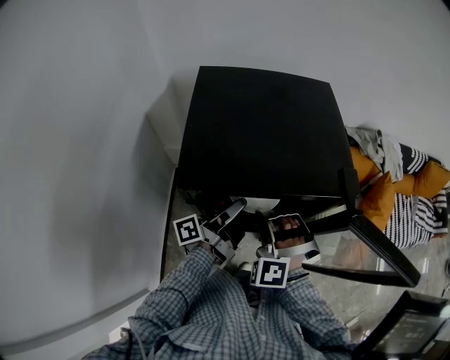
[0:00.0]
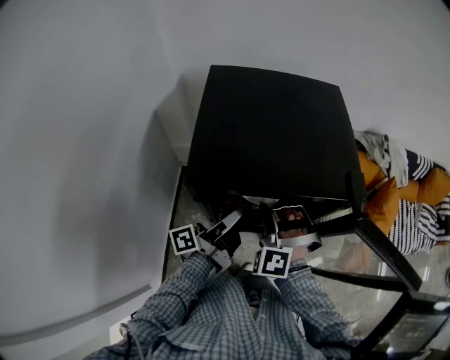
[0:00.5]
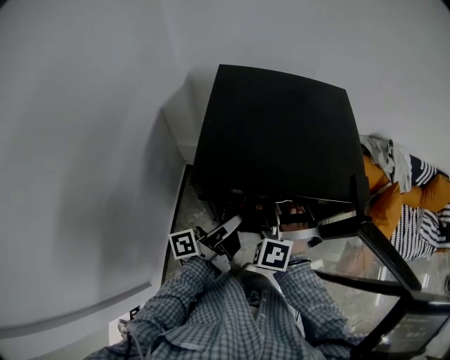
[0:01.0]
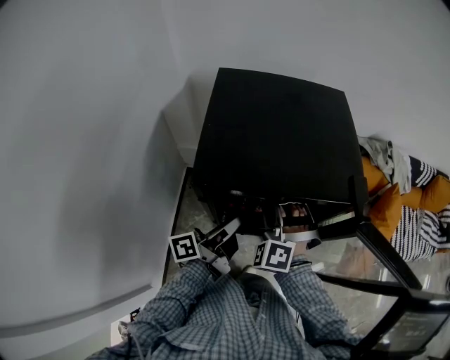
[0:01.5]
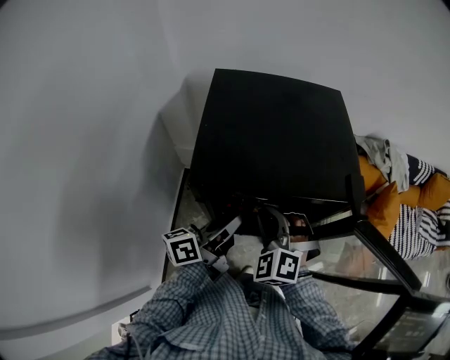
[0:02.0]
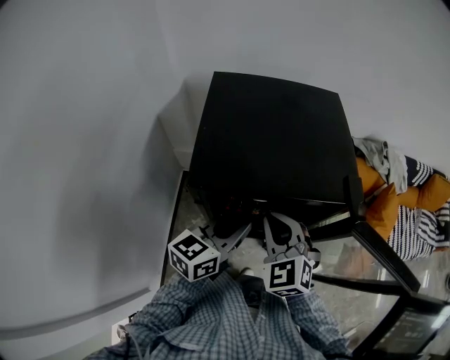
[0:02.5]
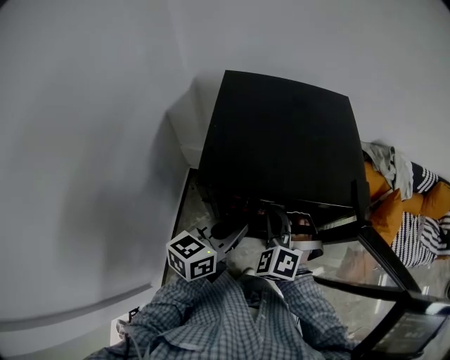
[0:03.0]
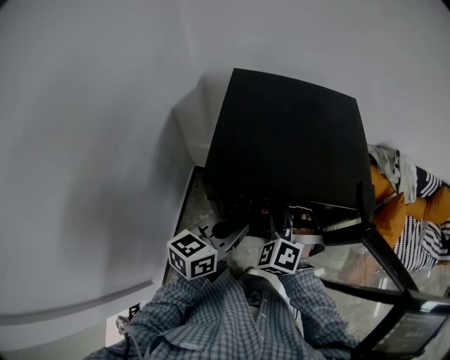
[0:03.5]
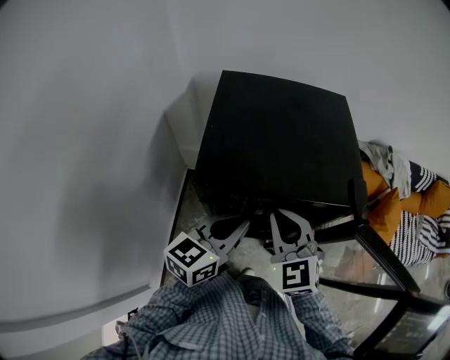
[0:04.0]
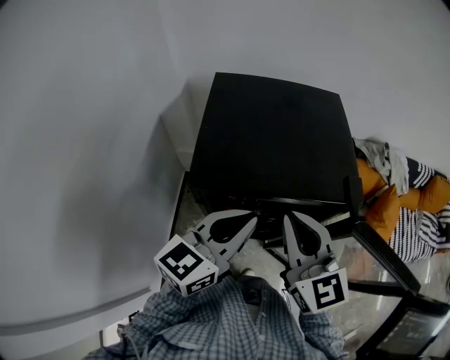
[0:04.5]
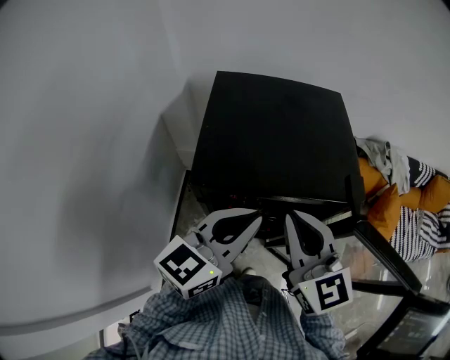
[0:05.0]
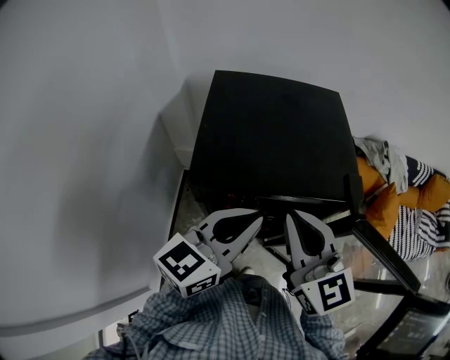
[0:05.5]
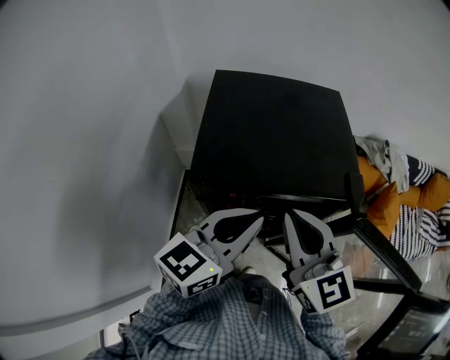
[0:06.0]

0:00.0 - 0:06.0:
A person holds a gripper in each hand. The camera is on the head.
0:00.0 - 0:02.0: The right gripper changes its angle by some 20 degrees.
0:02.0 - 0:04.0: The right gripper is displaced upward by approximately 5 cm, and changes its angle by approximately 30 degrees.
0:04.0 - 0:06.0: The right gripper moves upward, some 10 cm, and rotates approximately 30 degrees.

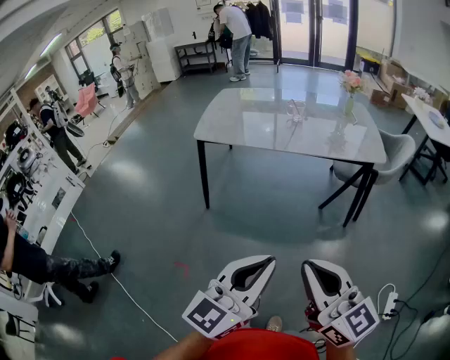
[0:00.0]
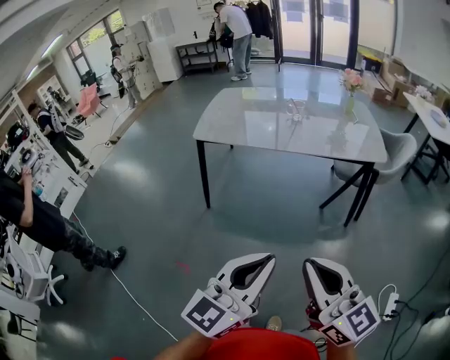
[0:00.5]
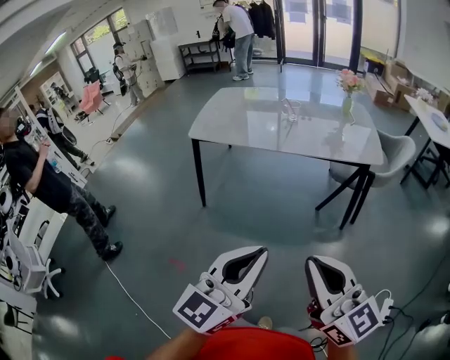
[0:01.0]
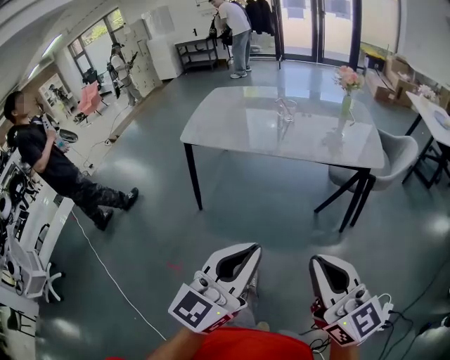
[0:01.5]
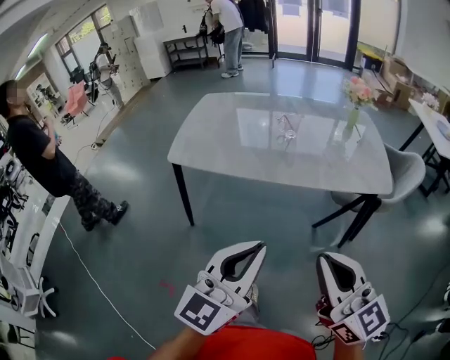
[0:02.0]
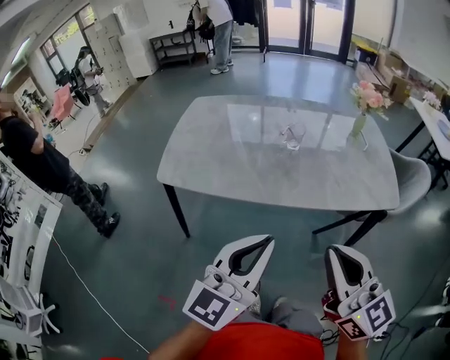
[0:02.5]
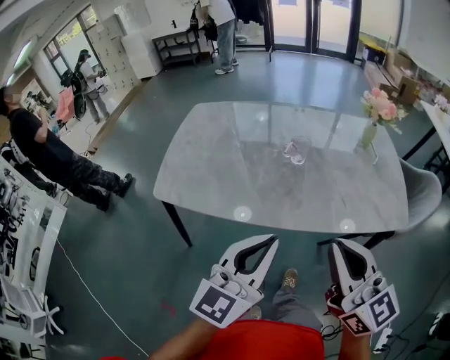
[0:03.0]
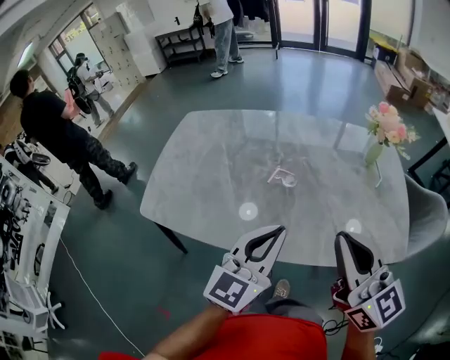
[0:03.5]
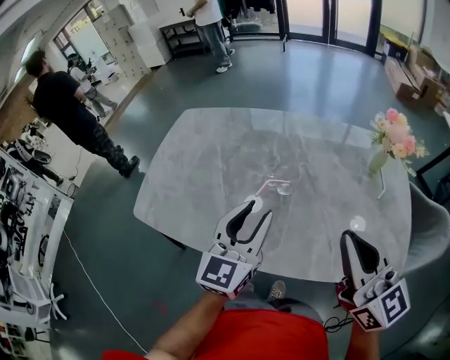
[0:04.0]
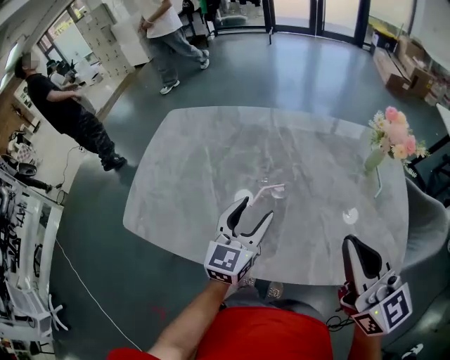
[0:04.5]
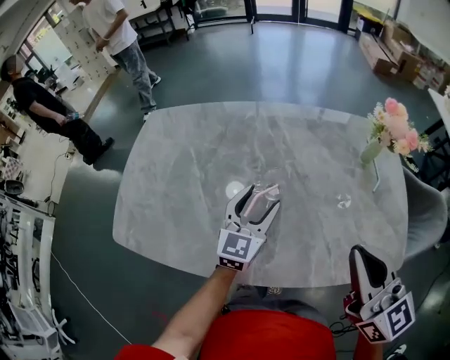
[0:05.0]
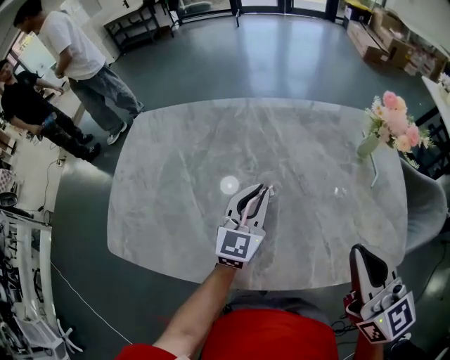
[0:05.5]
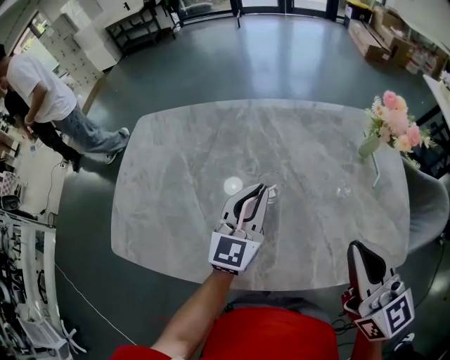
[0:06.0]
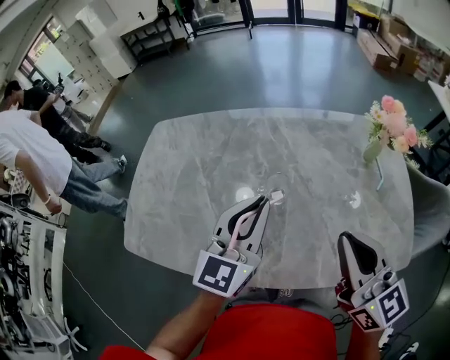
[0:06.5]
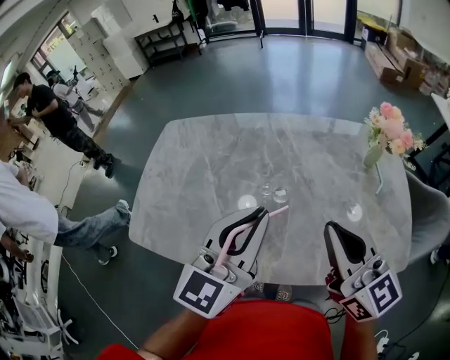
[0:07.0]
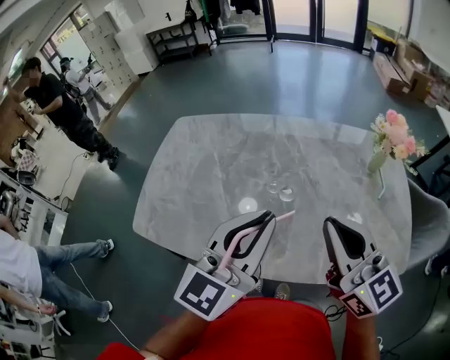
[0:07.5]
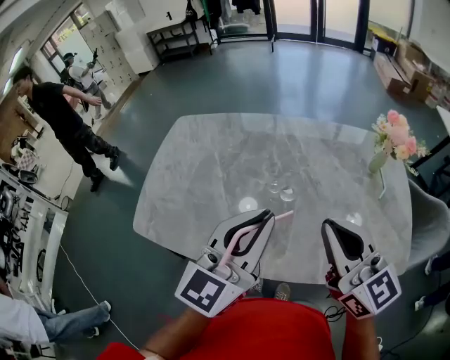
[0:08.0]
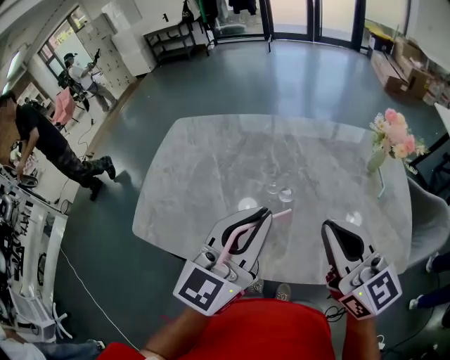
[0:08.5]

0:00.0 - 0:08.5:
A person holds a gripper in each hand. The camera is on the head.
0:00.0 - 0:02.0: Both grippers move forward, approximately 25 cm.
0:02.0 - 0:04.0: The two grippers travel together, forward, some 50 cm. The left gripper opens up.
0:04.0 - 0:06.5: Both grippers travel together forward, some 5 cm. The left gripper closes its fingers.
0:06.5 - 0:08.5: The left gripper moves backward and upward, some 10 cm. Meanwhile the right gripper heads to the left, covering about 5 cm.

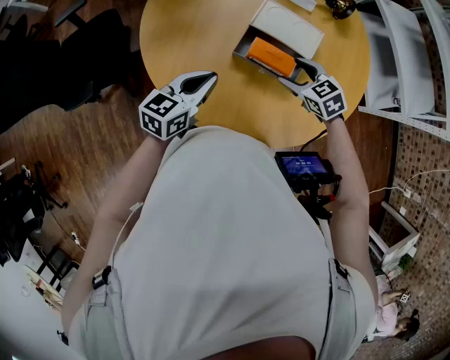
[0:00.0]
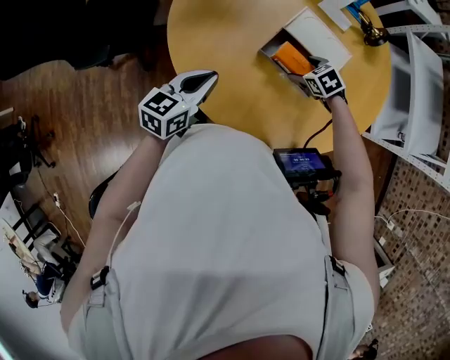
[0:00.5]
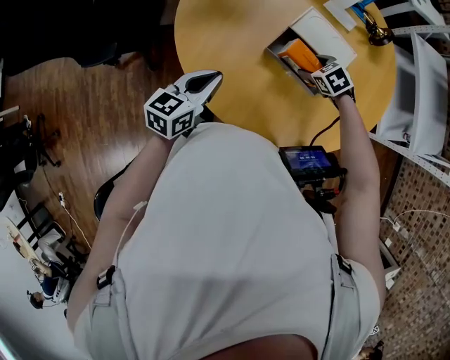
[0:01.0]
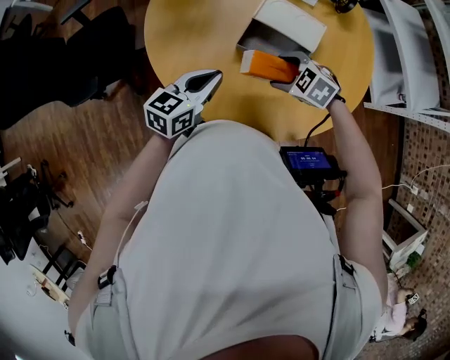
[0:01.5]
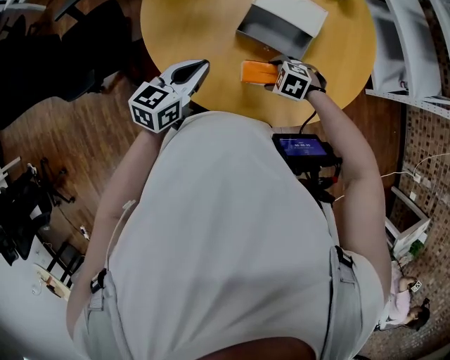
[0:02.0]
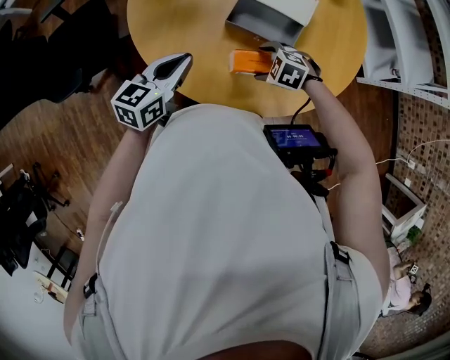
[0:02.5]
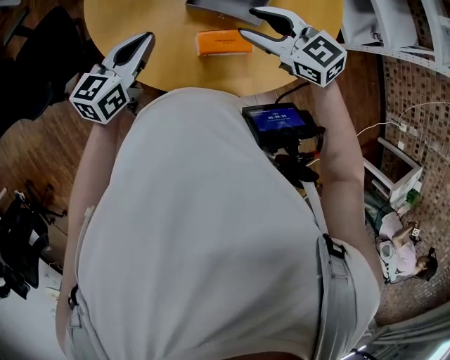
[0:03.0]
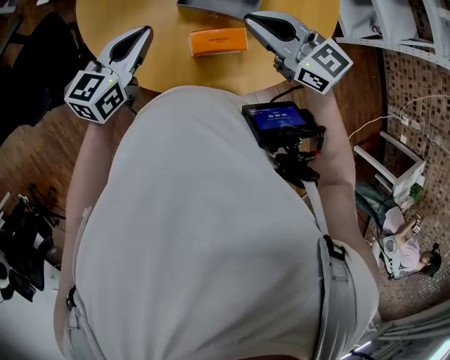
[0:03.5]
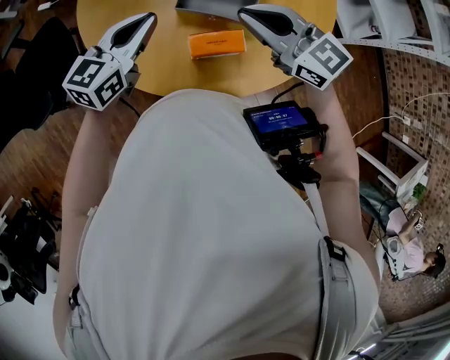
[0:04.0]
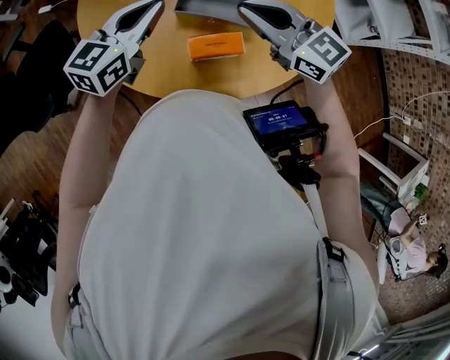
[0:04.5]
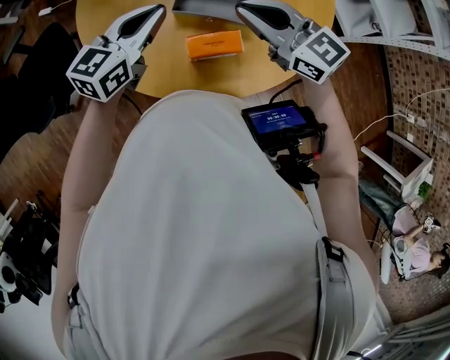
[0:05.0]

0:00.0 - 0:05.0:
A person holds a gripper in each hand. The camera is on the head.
0:00.0 - 0:02.5: The right gripper swings up and down, about 10 cm each way, with 2 reversals, and changes its angle by some 40 degrees.
0:02.5 - 0:05.0: The left gripper moves upward, roughly 10 cm. The right gripper goes roughly 25 cm upward, tilts its fingers roughly 60 degrees upward, and closes.

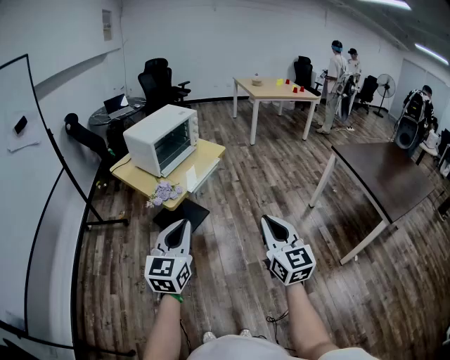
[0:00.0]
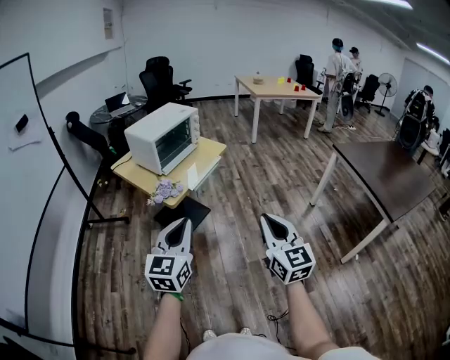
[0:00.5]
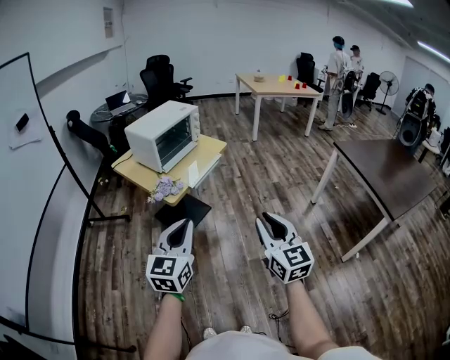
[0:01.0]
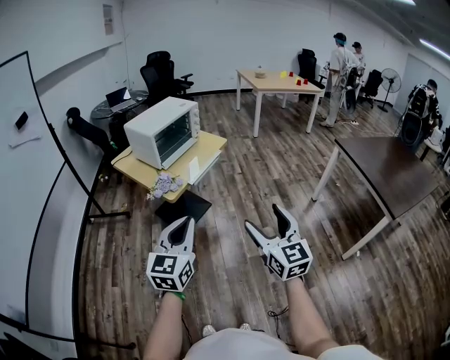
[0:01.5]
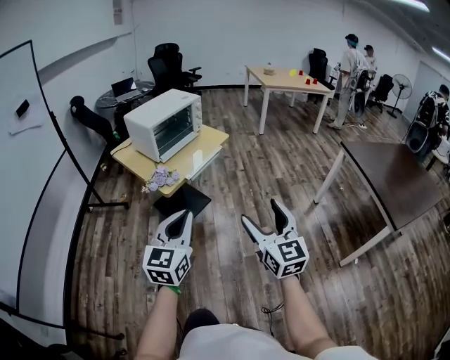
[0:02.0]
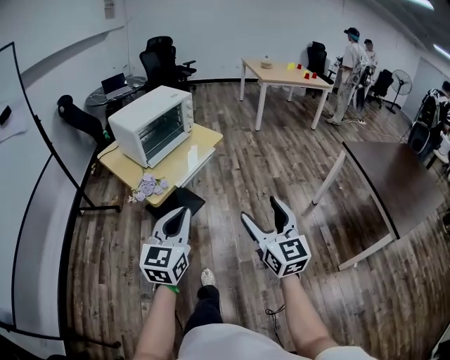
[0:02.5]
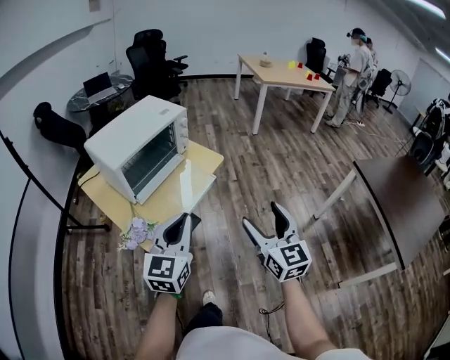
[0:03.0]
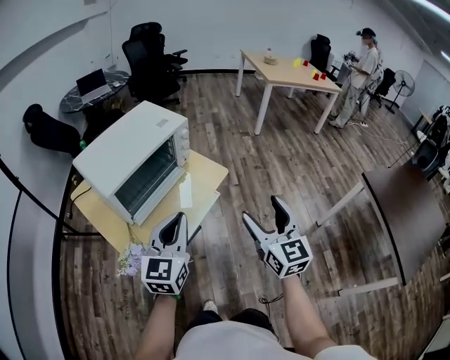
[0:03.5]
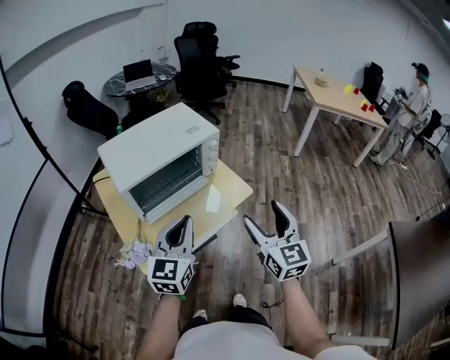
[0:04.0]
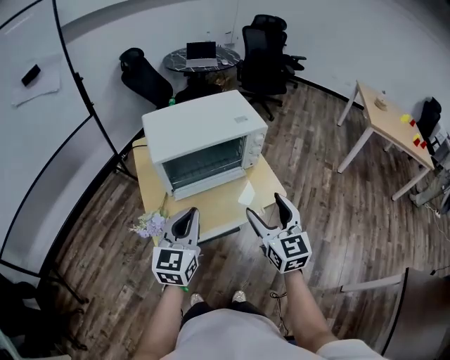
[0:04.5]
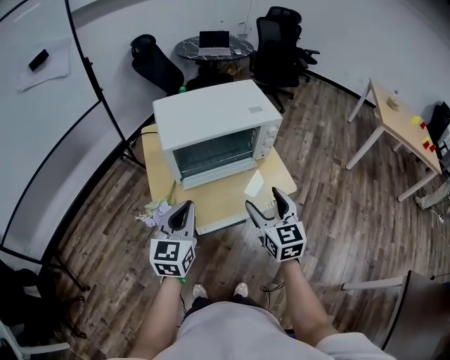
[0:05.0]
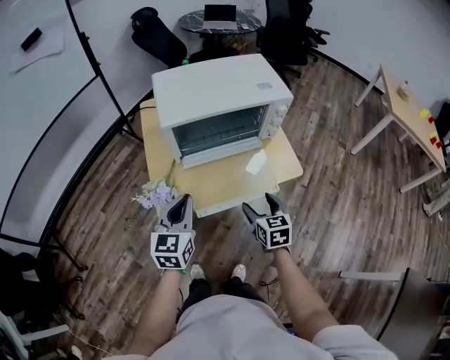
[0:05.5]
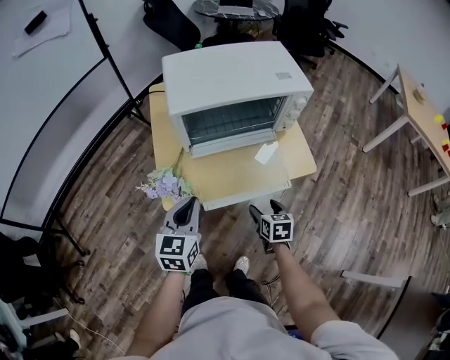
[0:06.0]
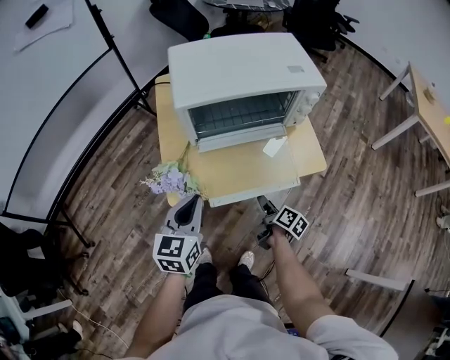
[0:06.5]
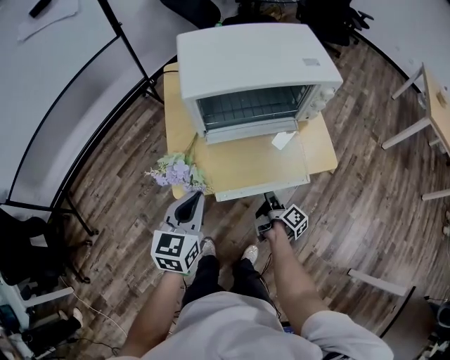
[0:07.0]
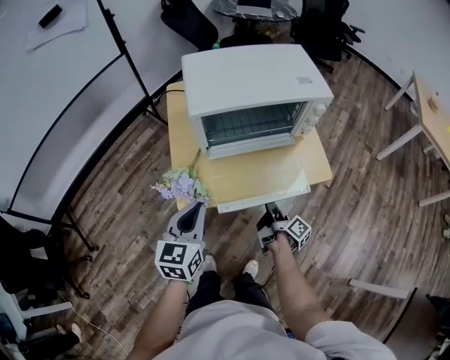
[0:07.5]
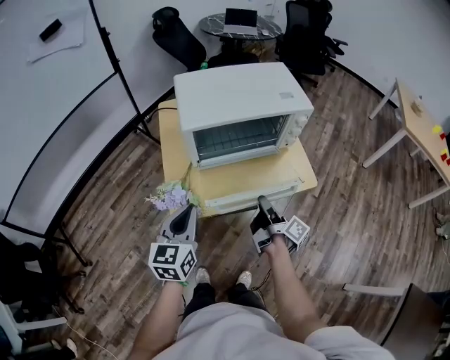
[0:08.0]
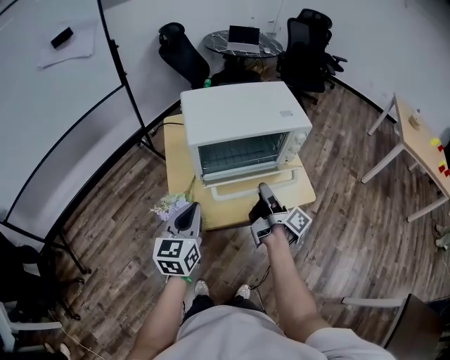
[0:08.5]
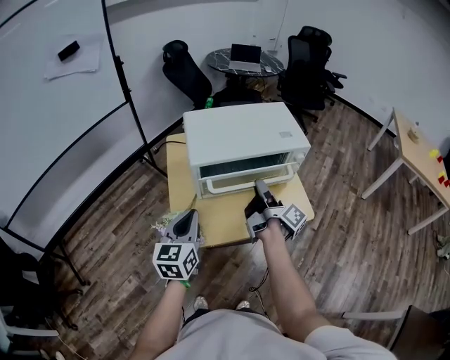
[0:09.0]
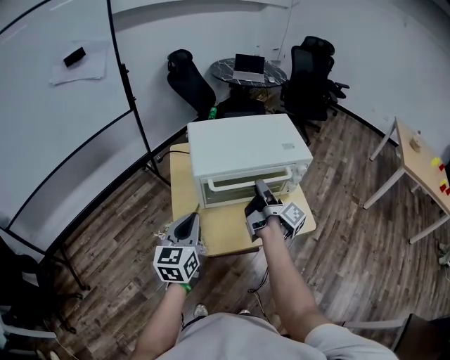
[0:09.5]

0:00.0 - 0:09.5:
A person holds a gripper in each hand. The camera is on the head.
0:00.0 - 0:02.0: The left gripper moves some 5 cm. The right gripper opens its fingers.
0:02.0 - 0:04.0: Both grippers are carried forward, approximately 50 cm.
0:04.0 - 0:05.5: The right gripper goes some 20 cm downward, and turns by roughly 40 degrees, while the left gripper heads downward and to the left, covering some 15 cm, and swivels roughly 30 degrees.
0:05.5 - 0:07.5: The right gripper is displaced downward by about 10 cm, rotates around the line of its fingers by about 80 degrees, clockwise from behind, and closes up.
0:07.5 - 0:09.5: The left gripper moves upward and forward, approximately 10 cm, while the right gripper goes approximately 30 cm upward and forward, and rotates some 20 degrees.
